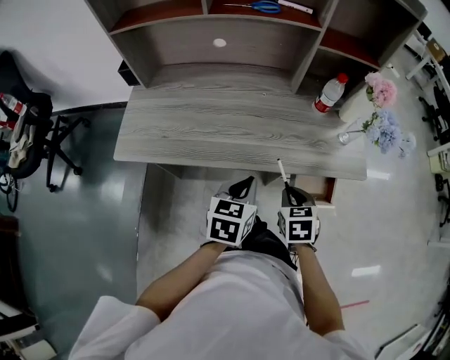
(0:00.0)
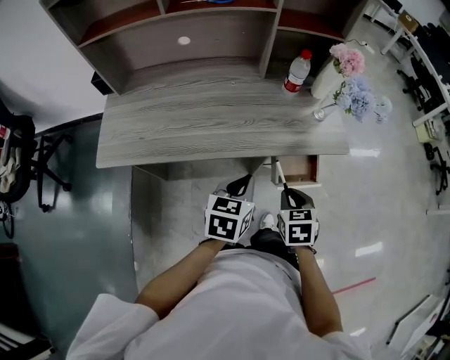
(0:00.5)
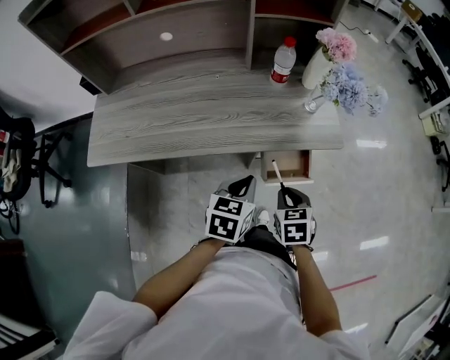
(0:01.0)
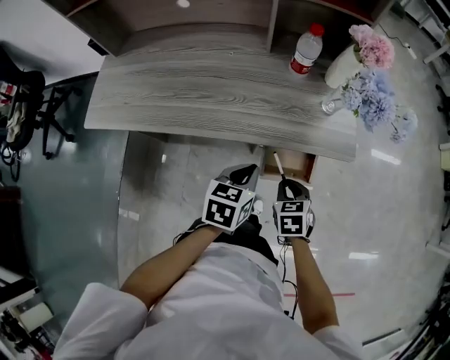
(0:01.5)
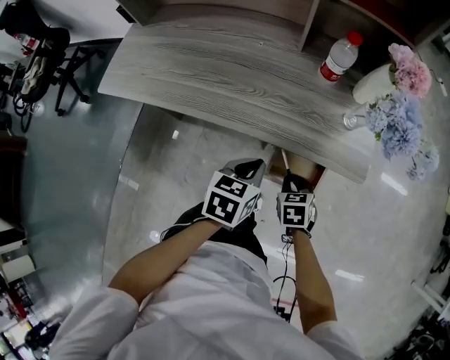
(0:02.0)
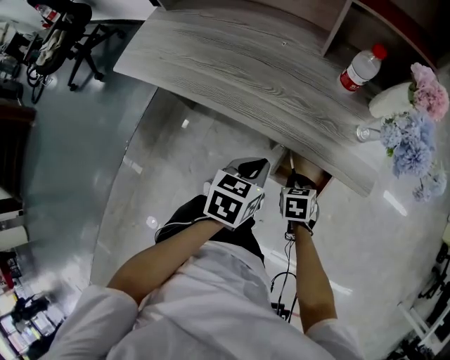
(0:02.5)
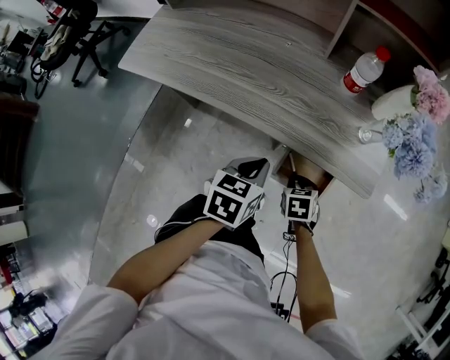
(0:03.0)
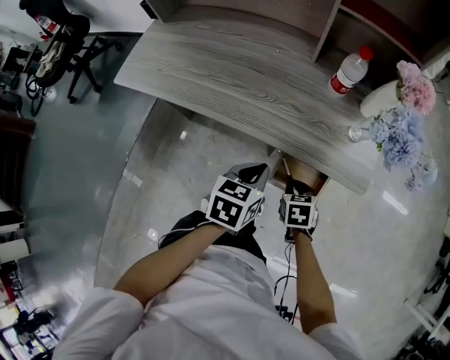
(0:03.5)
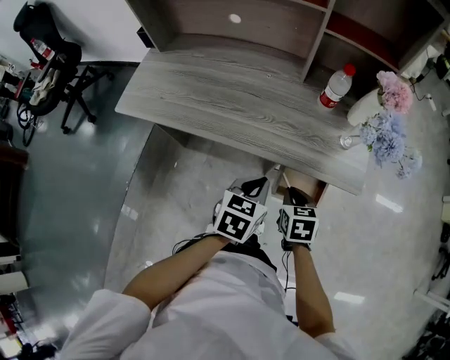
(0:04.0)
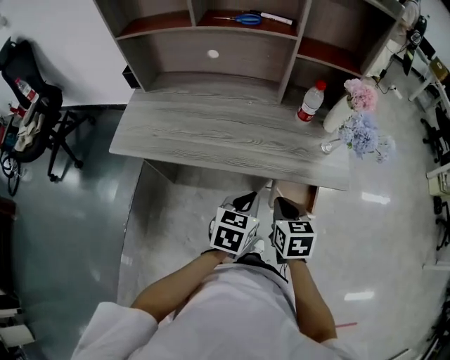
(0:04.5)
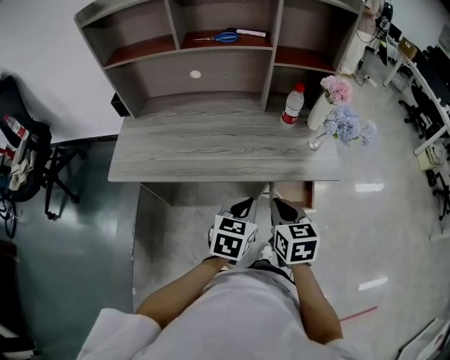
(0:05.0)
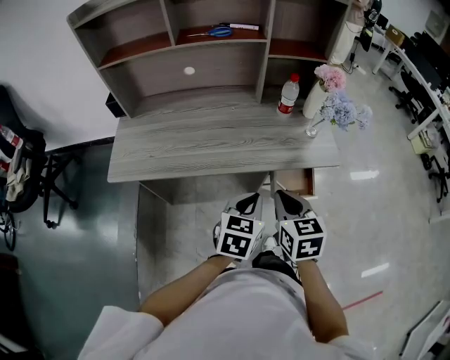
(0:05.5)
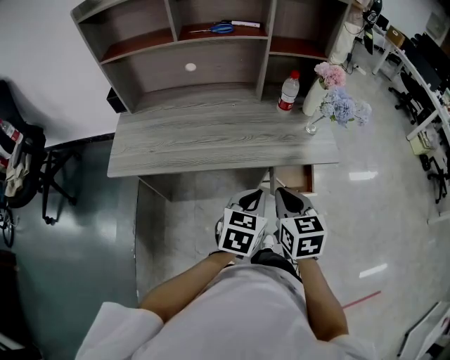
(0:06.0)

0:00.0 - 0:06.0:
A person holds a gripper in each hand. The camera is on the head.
0:00.0 - 0:02.0: Both grippers move to the right and downward, about 20 cm.
0:02.0 - 0:04.0: The left gripper shifts by about 5 cm. The right gripper shifts some 10 cm upward.
0:04.0 - 0:06.0: The right gripper is displaced upward, backward and to the left by some 20 cm, and turns by some 20 degrees. The left gripper heads upward and backward, covering approximately 10 cm.

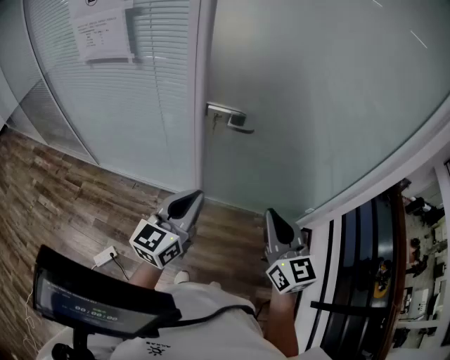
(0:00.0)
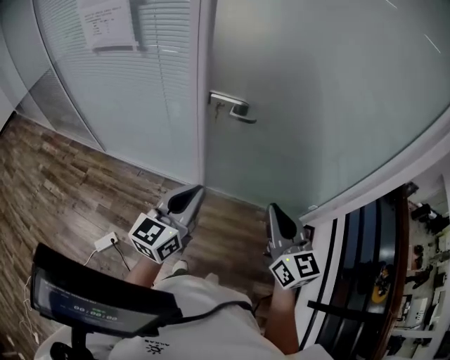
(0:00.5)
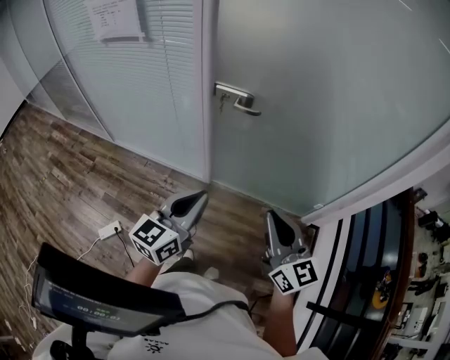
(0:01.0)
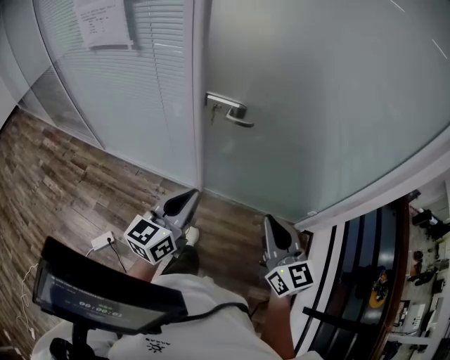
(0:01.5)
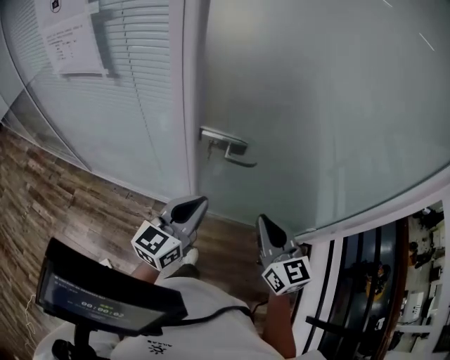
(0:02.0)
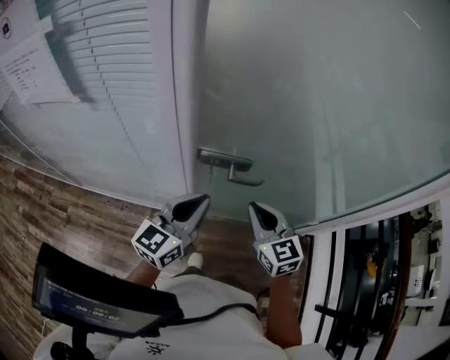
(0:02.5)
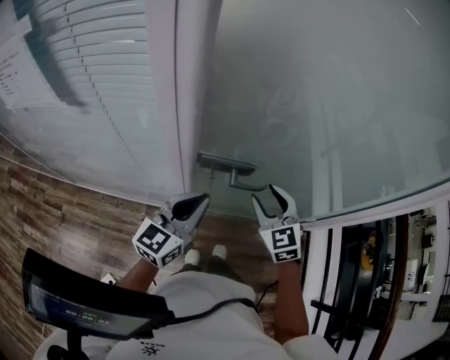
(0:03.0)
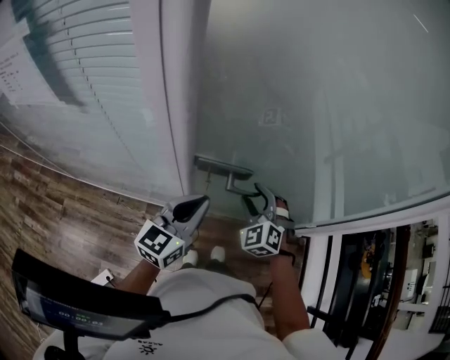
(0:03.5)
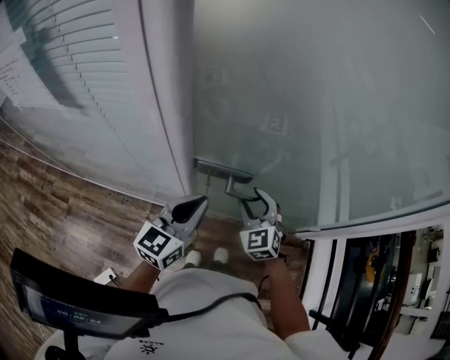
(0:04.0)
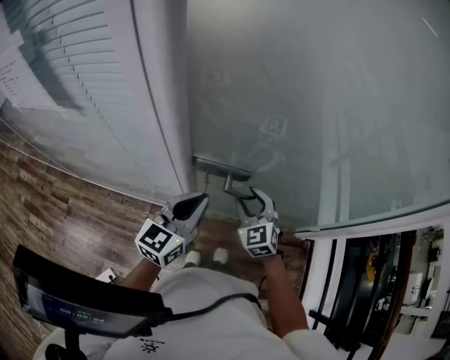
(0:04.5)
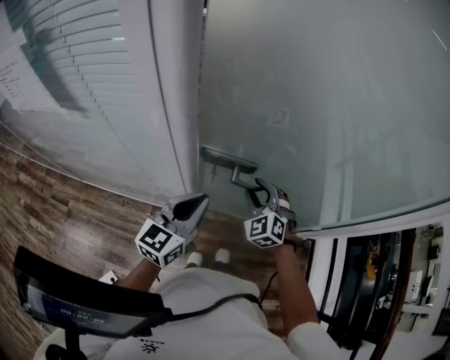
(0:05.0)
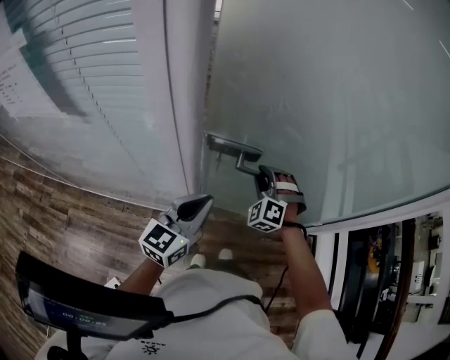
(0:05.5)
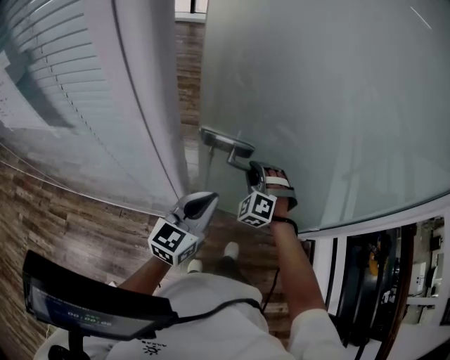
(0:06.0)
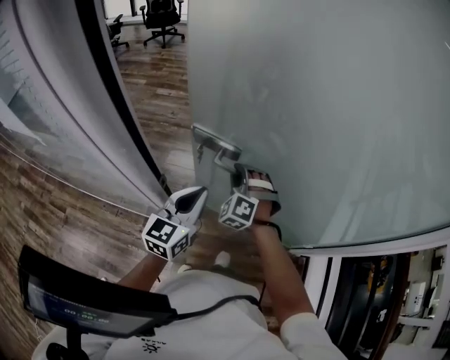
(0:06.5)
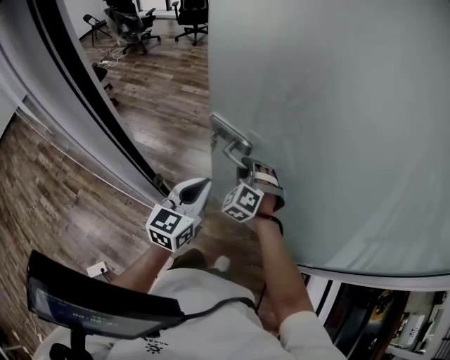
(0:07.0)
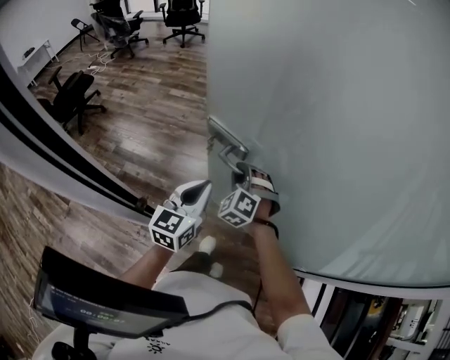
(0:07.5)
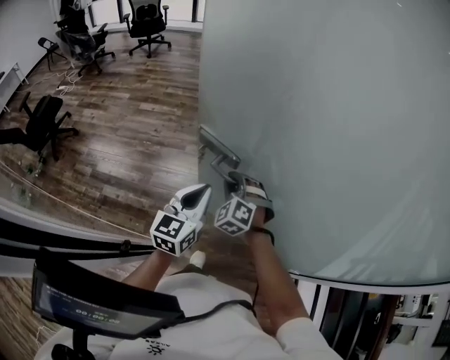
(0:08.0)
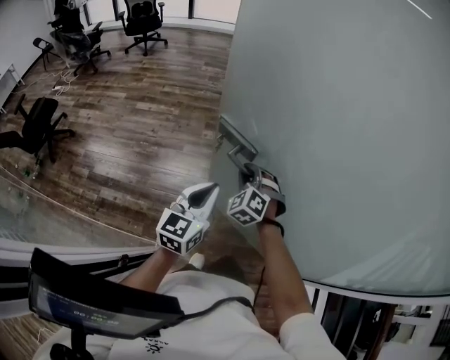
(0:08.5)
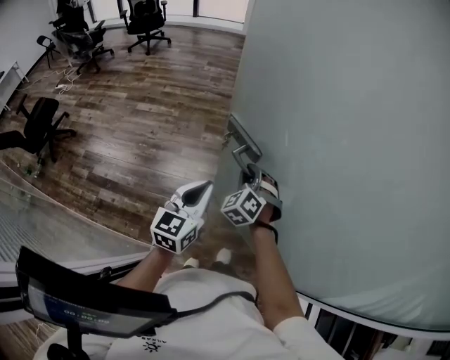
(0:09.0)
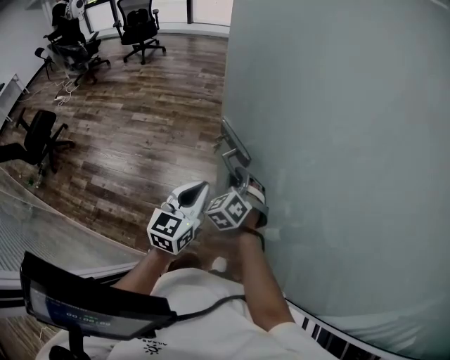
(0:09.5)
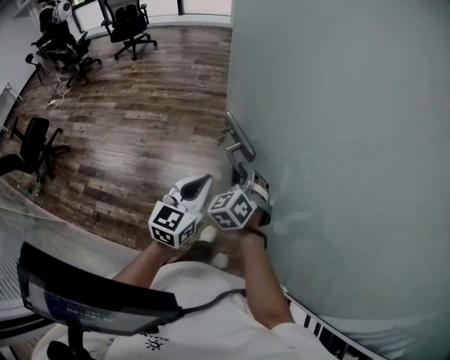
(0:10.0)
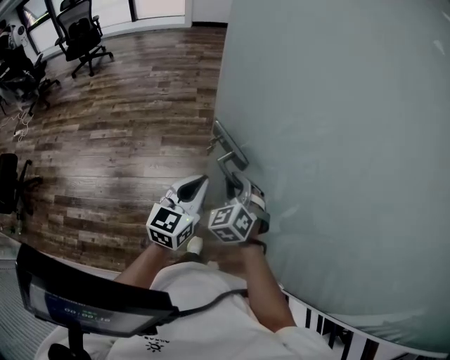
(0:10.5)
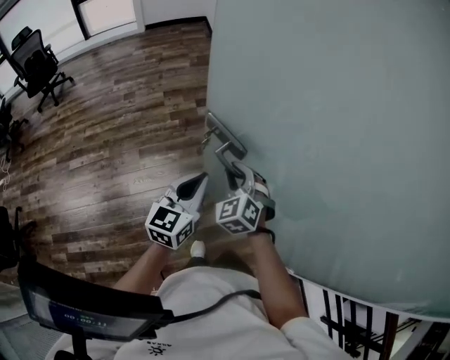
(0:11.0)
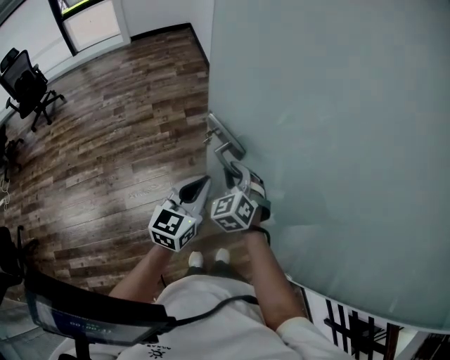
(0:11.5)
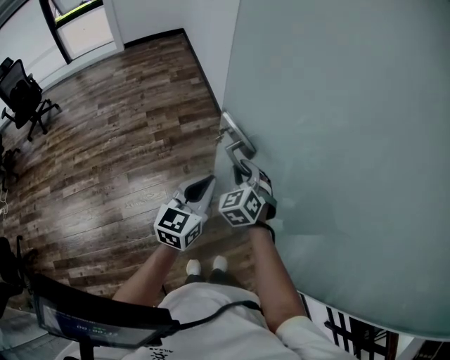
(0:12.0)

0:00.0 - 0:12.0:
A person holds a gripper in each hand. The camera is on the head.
0:00.0 - 0:02.0: The two grippers go roughly 20 cm forward.
0:02.0 - 0:04.0: The left gripper goes approximately 15 cm forward; the right gripper moves forward, downward and to the left, roughly 25 cm, changes its angle by about 40 degrees, and opens its fingers.
0:04.0 - 0:06.0: The left gripper shifts by approximately 5 cm. Meanwhile the right gripper moves forward, some 10 cm, turns by roughly 40 degrees, and closes its fingers.
0:06.0 - 0:08.0: Both grippers move forward, approximately 30 cm.
0:08.0 - 0:10.0: The grippers both shift forward and to the right by approximately 30 cm. The right gripper rotates approximately 20 degrees.
0:10.0 - 0:12.0: The left gripper moves approximately 30 cm, and swivels some 30 degrees; the right gripper changes place by about 30 cm, and changes its angle by approximately 30 degrees.

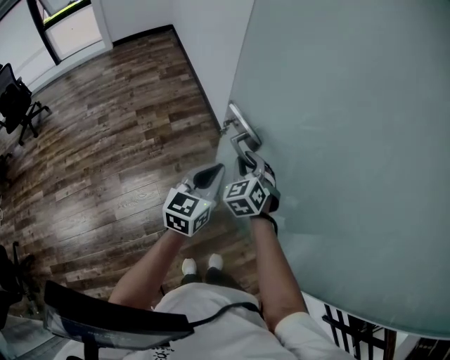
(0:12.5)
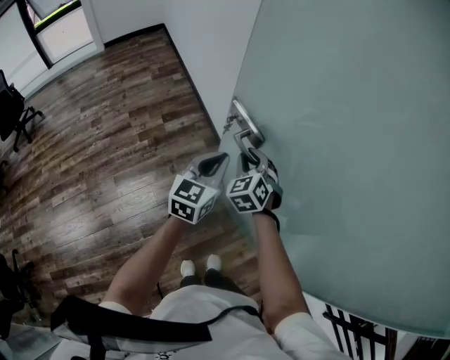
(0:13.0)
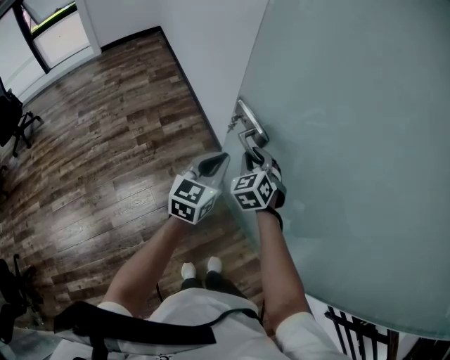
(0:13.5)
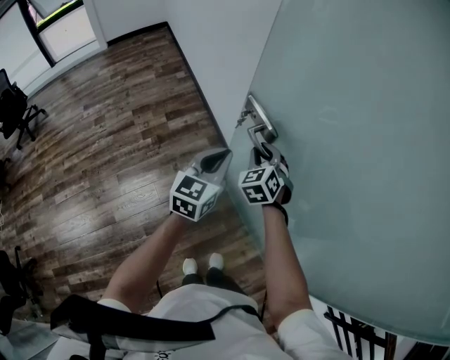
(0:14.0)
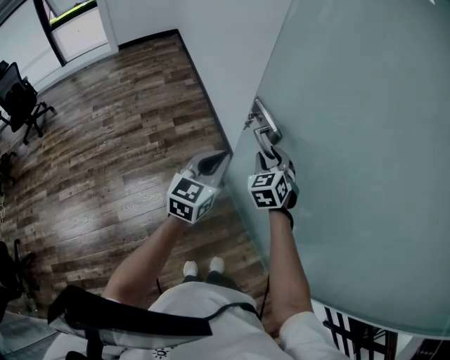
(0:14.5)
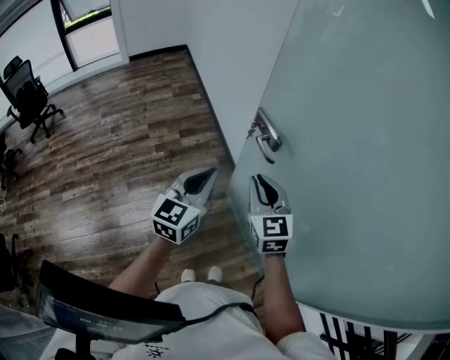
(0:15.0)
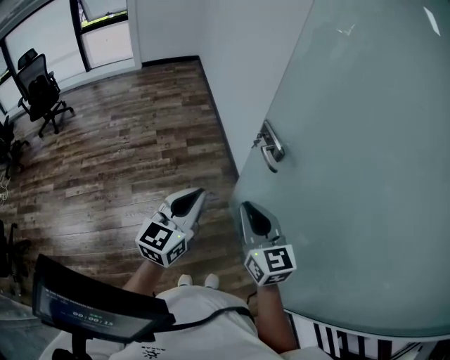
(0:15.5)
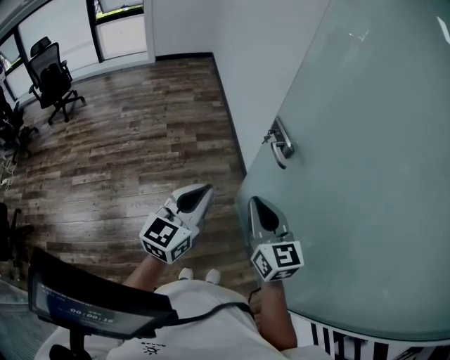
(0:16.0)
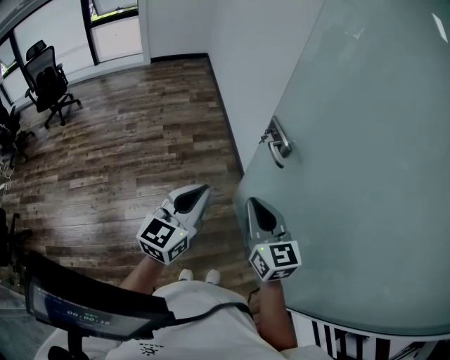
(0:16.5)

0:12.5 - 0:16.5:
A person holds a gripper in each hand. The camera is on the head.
0:12.5 - 0:14.5: The right gripper is displaced to the right by some 5 cm.
0:14.5 - 0:16.5: Both grippers move backward and upward, some 25 cm. The right gripper changes its angle by some 50 degrees, and closes up.

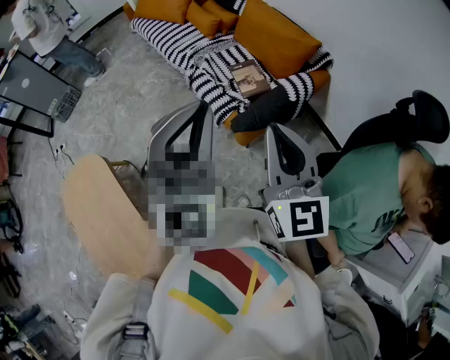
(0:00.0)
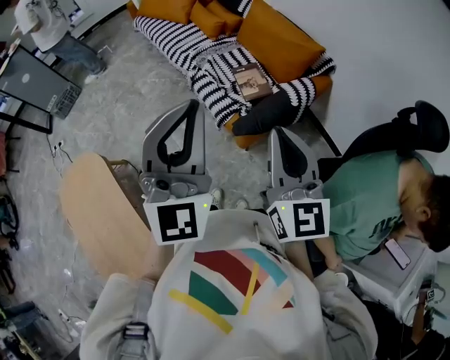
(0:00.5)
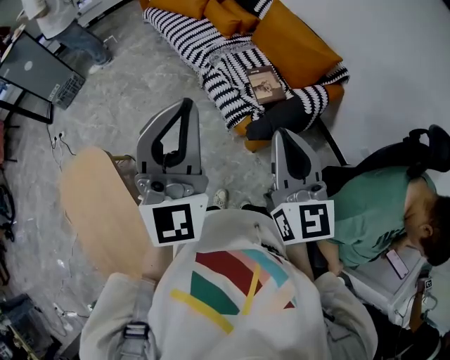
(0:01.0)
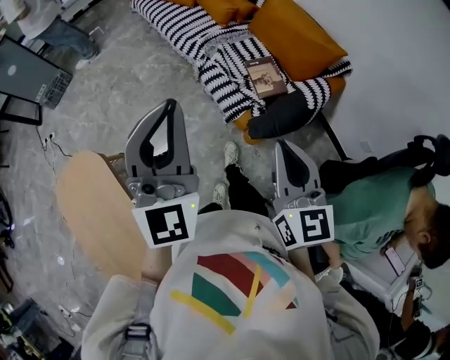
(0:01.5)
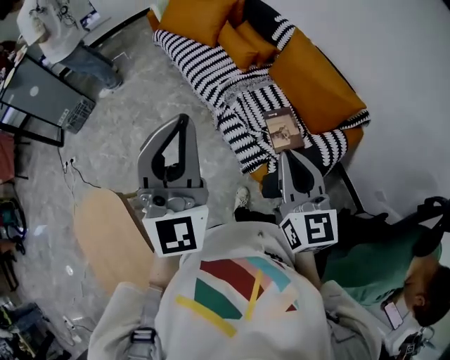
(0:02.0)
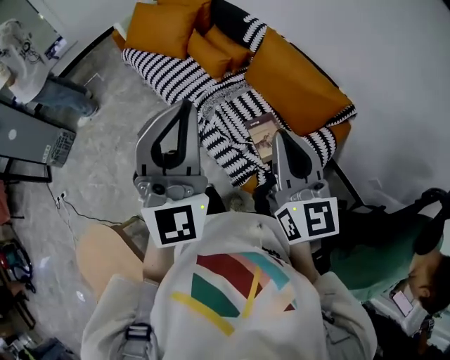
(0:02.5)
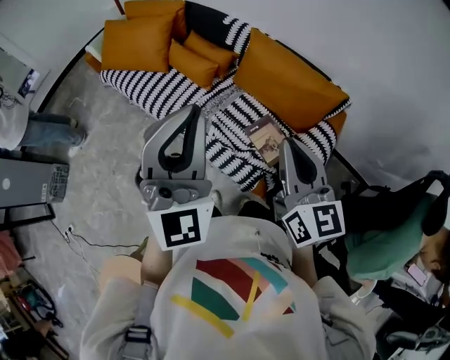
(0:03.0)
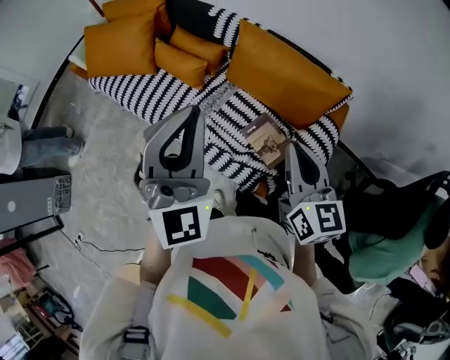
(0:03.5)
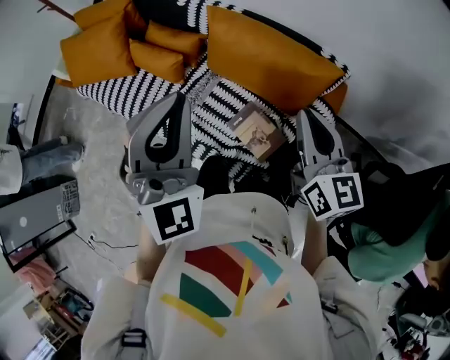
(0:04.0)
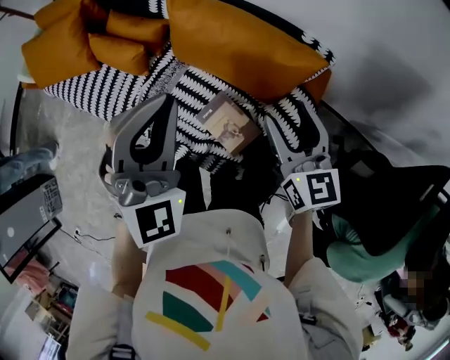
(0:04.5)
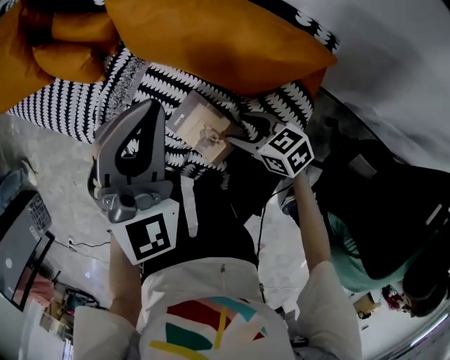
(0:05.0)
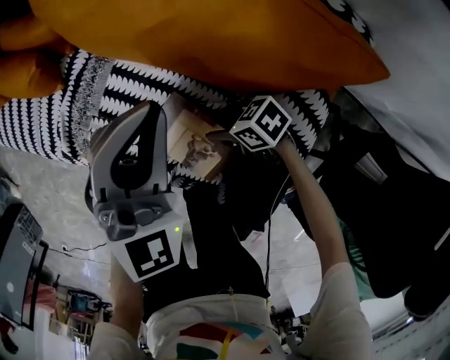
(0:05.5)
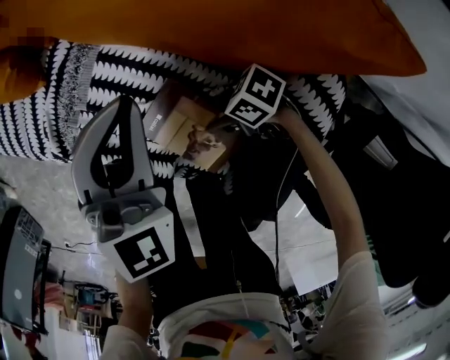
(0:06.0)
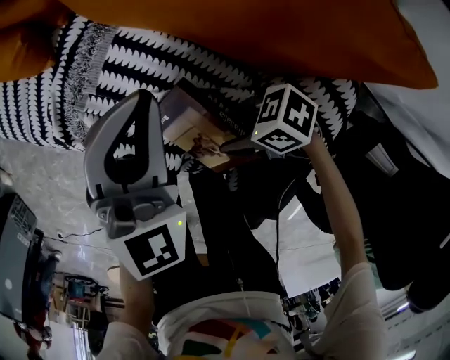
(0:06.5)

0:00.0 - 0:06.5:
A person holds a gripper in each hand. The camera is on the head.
0:00.0 - 0:02.0: The right gripper is displaced forward by roughly 25 cm. Meanwhile the left gripper is displaced forward and to the left by approximately 30 cm.
0:02.0 - 0:04.5: The right gripper changes place by about 40 cm, changes its angle by approximately 30 degrees, and opens; the left gripper shifts by about 50 cm, and swivels about 50 degrees.
0:04.5 - 0:06.5: The grippers both shift downward by roughly 35 cm. The left gripper changes its angle by approximately 20 degrees. Meanwhile the right gripper rotates approximately 90 degrees.
